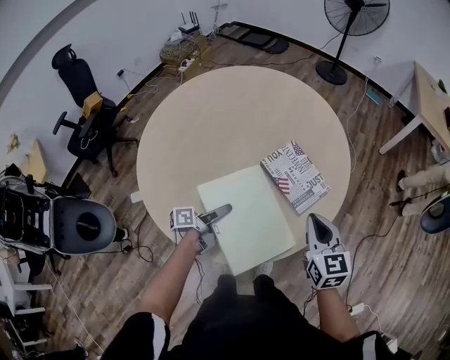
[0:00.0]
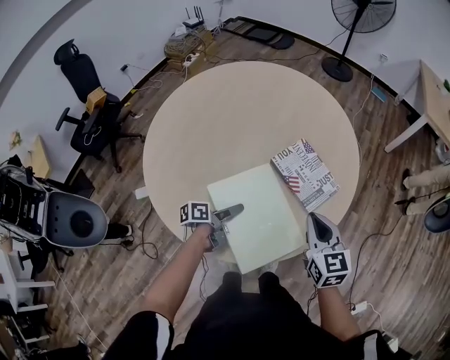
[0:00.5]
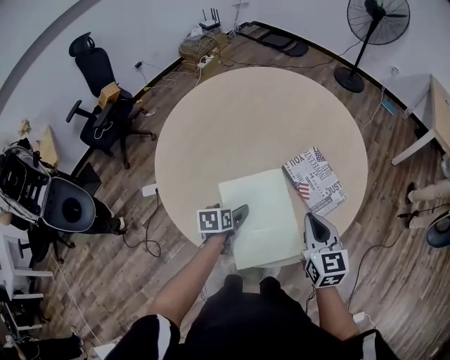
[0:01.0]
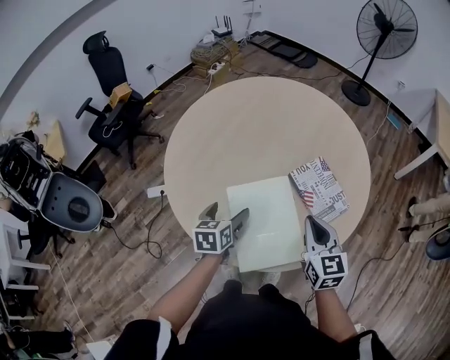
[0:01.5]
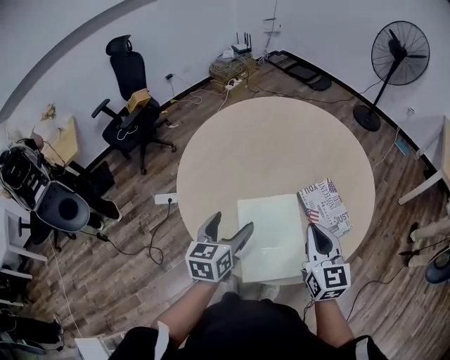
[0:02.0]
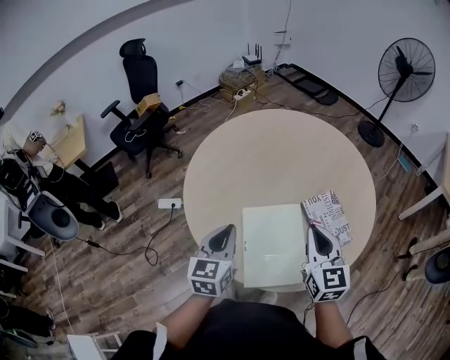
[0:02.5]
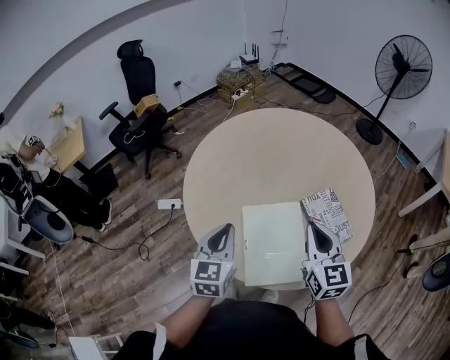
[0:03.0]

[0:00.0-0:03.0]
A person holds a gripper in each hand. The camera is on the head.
0:00.0 to 0:01.5: The left gripper goes approximately 10 cm upward and to the left, changes its angle by about 60 degrees, and opens its fingers. The right gripper is displaced to the left by some 10 cm.
0:01.5 to 0:03.0: The left gripper heads upward, covering roughly 15 cm, swivels about 30 degrees, and closes. Meanwhile the right gripper travels upward by about 10 cm.

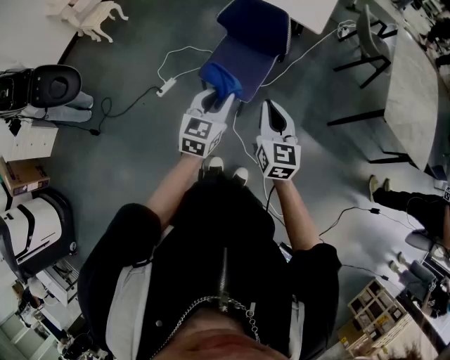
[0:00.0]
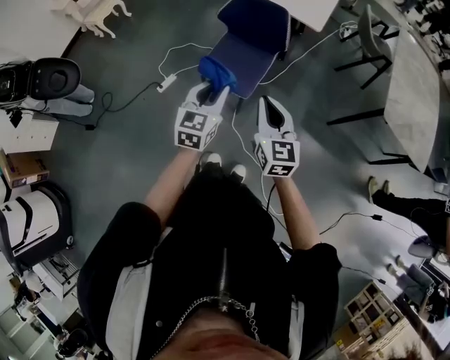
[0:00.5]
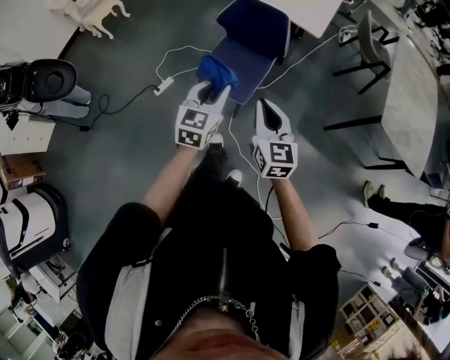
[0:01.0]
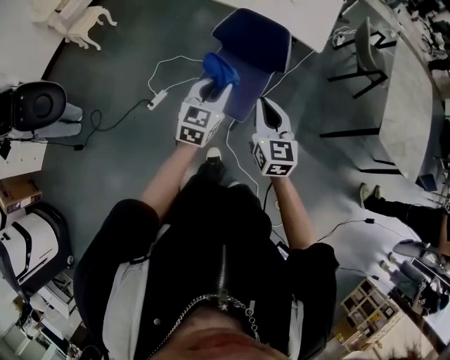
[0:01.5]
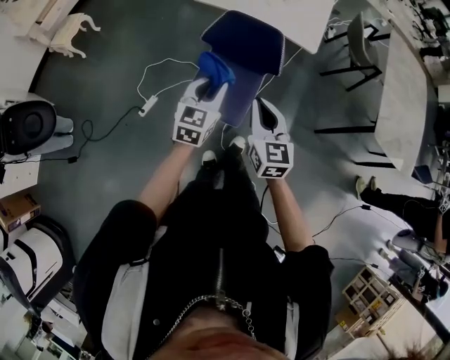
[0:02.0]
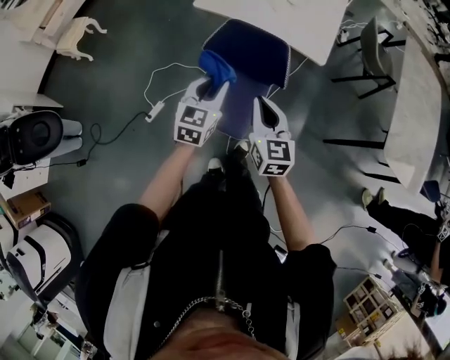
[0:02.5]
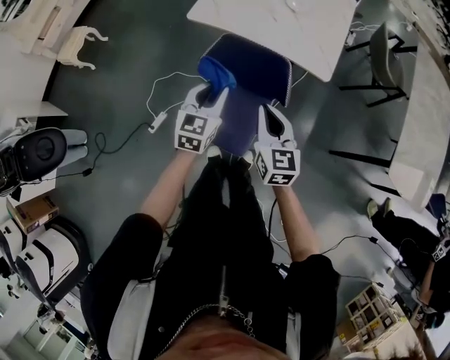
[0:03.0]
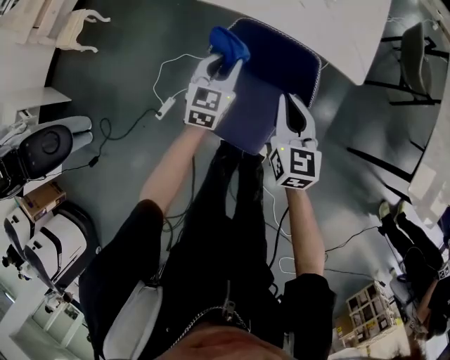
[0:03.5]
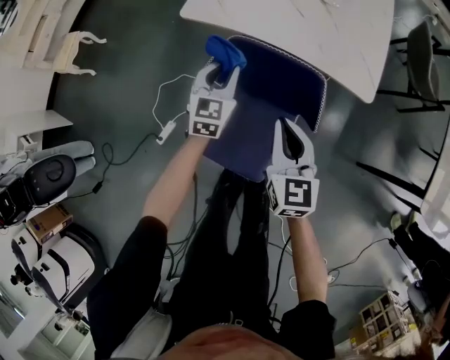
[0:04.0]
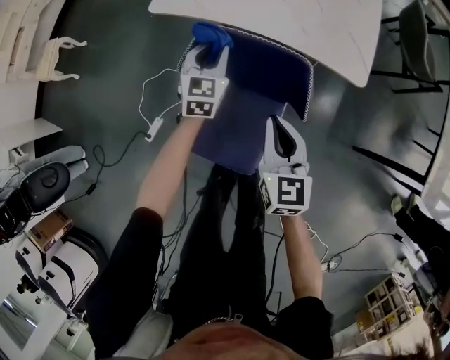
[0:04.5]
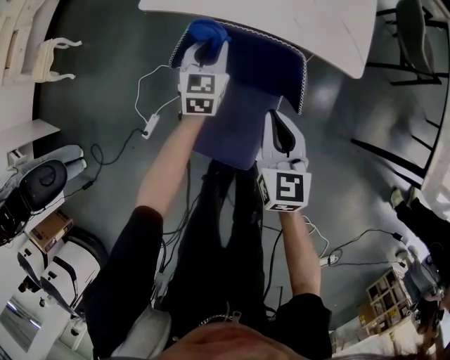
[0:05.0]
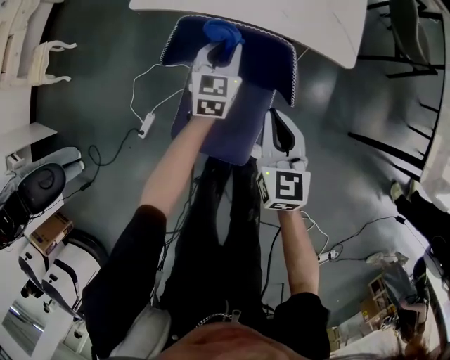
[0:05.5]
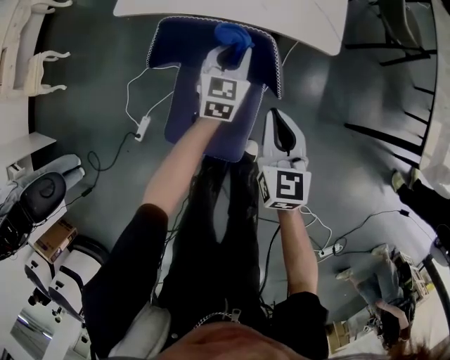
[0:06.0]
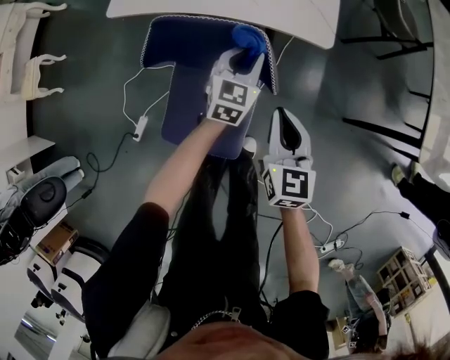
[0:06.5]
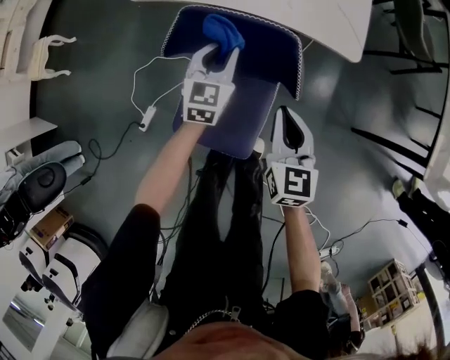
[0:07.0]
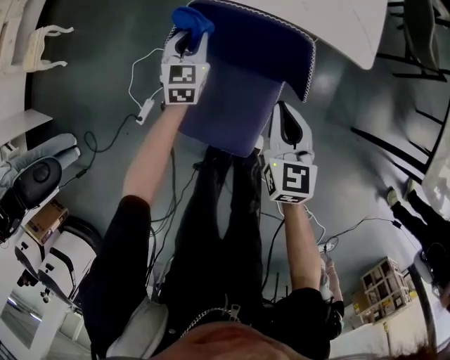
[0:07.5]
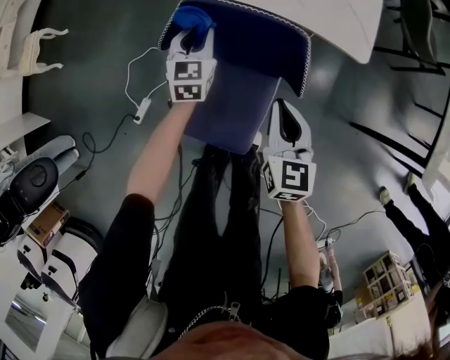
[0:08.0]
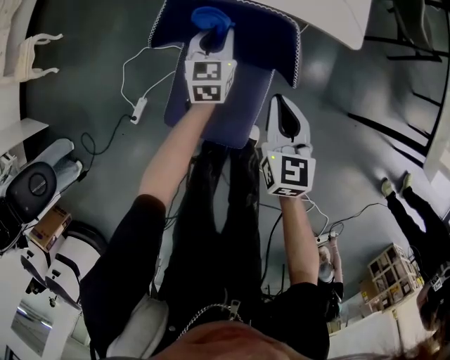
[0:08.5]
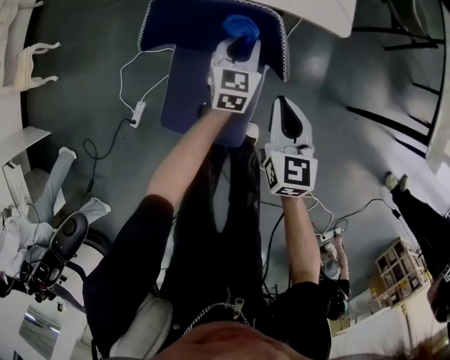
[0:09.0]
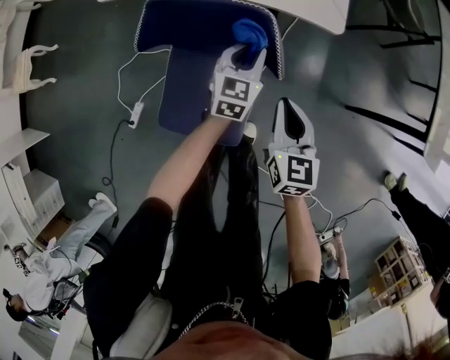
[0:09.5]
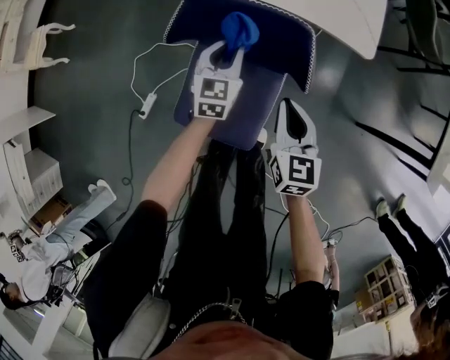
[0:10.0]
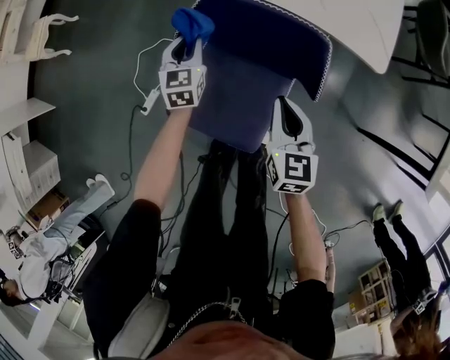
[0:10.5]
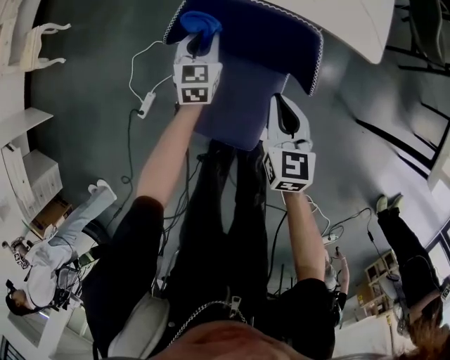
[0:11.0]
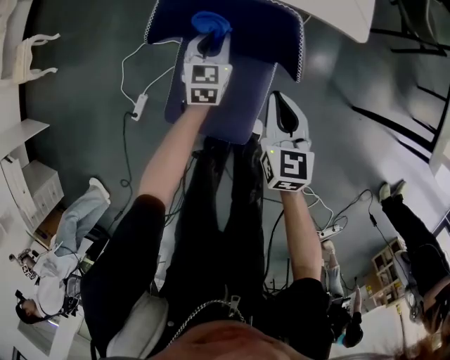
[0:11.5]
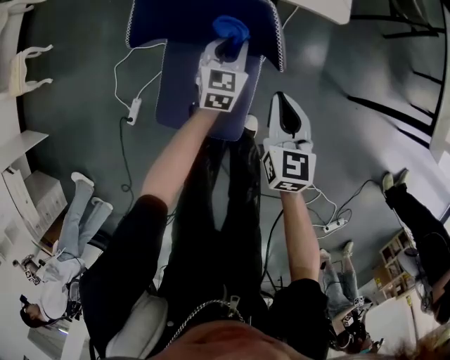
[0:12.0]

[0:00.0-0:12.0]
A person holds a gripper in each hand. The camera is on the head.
0:00.0 to 0:02.0: The two grippers go about 20 cm forward.
0:02.0 to 0:04.0: Both grippers move forward and downward, approximately 40 cm.
0:04.0 to 0:06.0: The left gripper shifts some 20 cm to the right, while the right gripper heads to the right, covering approximately 10 cm.
0:06.0 to 0:08.0: The left gripper moves to the left, some 15 cm. Meanwhile the right gripper shifts by about 5 cm.
0:08.0 to 0:10.0: The left gripper travels backward by about 5 cm, and moves approximately 20 cm to the right and comes back. Meanwhile the right gripper goes to the right and returns, approximately 10 cm each way.
0:10.0 to 0:12.0: The right gripper goes roughly 5 cm to the right. The left gripper moves to the right, some 10 cm.

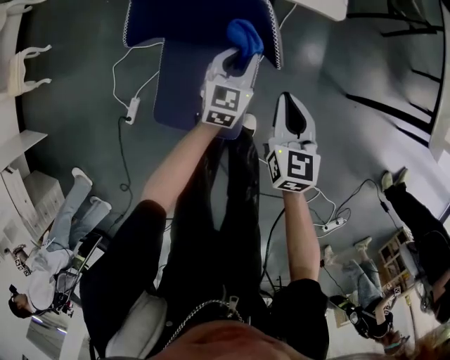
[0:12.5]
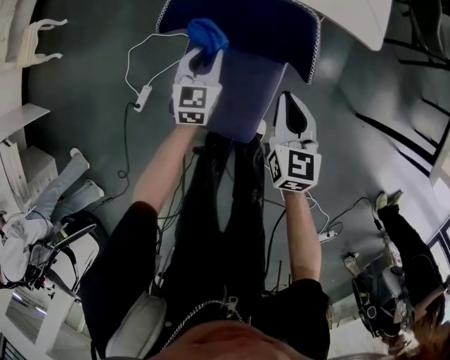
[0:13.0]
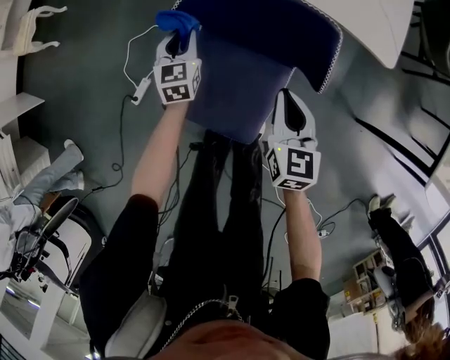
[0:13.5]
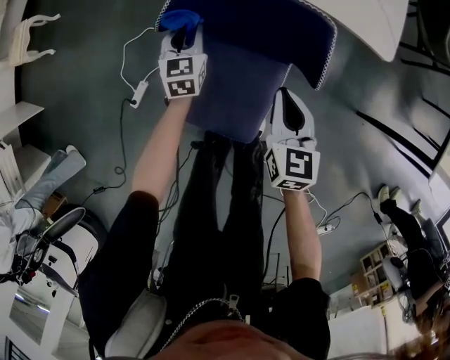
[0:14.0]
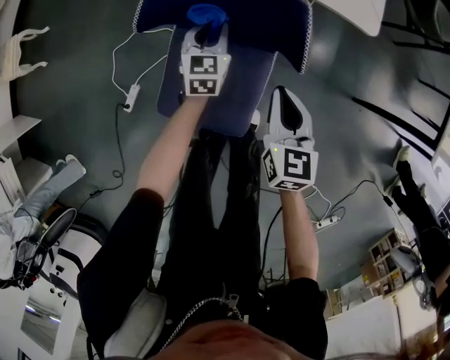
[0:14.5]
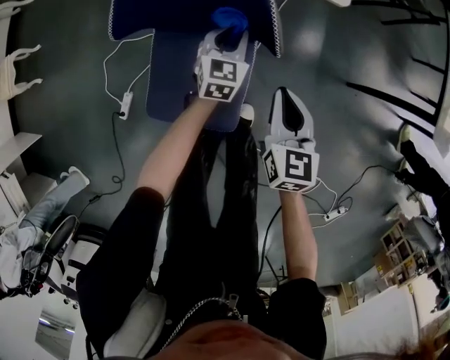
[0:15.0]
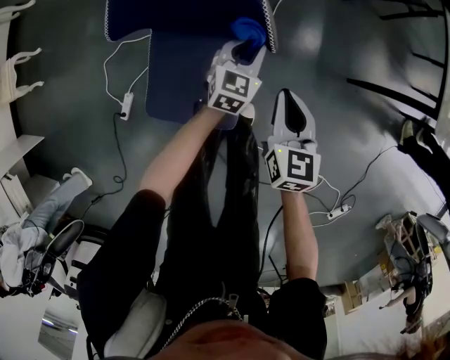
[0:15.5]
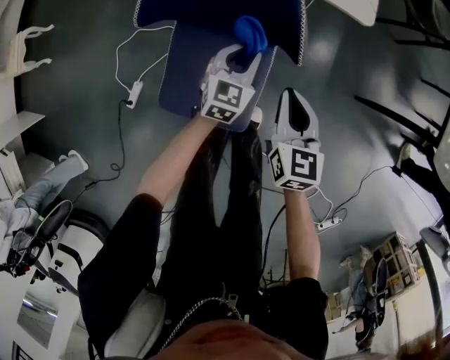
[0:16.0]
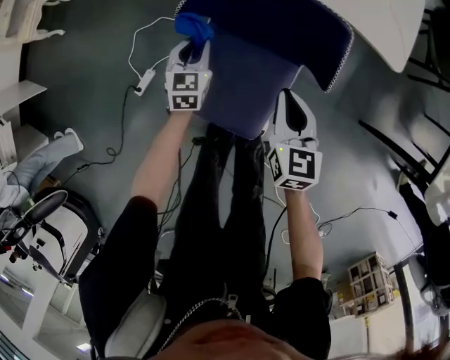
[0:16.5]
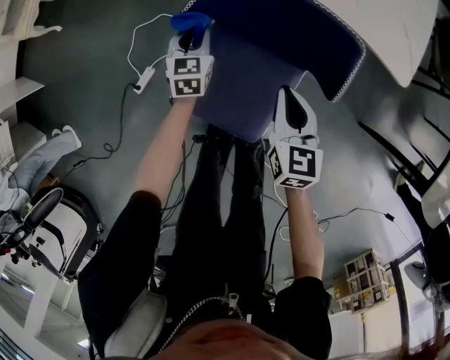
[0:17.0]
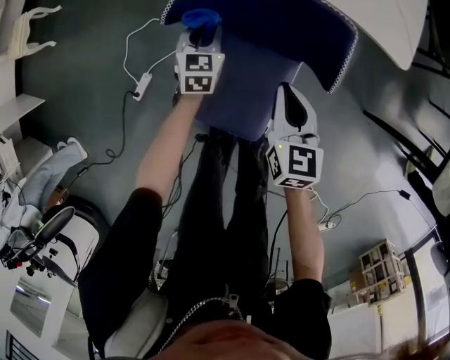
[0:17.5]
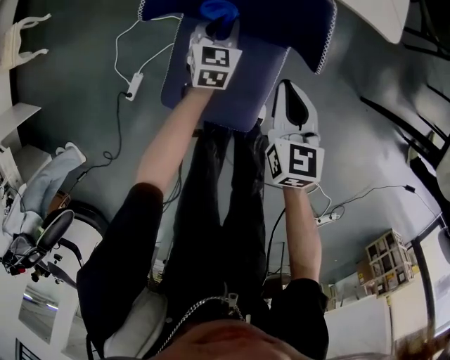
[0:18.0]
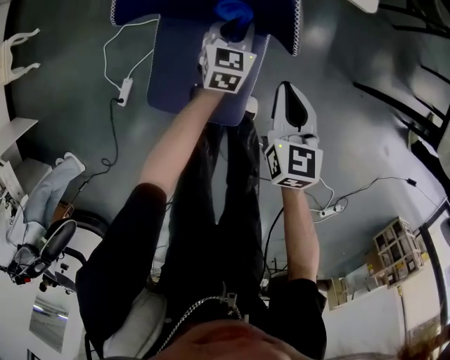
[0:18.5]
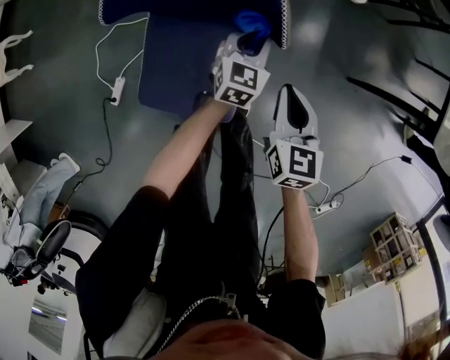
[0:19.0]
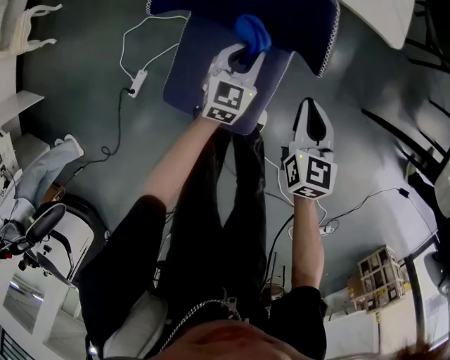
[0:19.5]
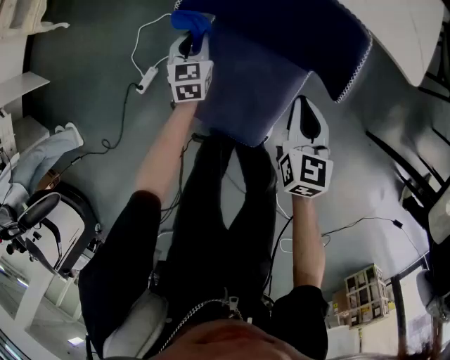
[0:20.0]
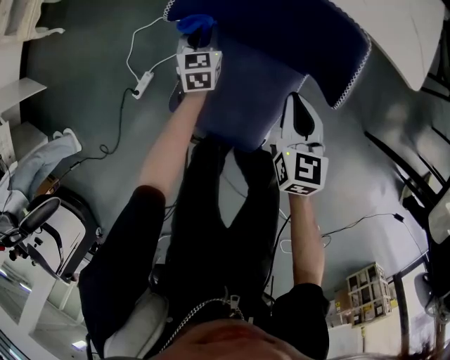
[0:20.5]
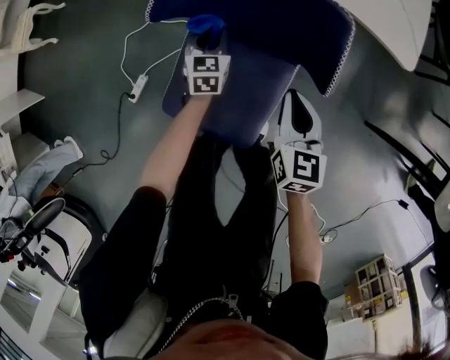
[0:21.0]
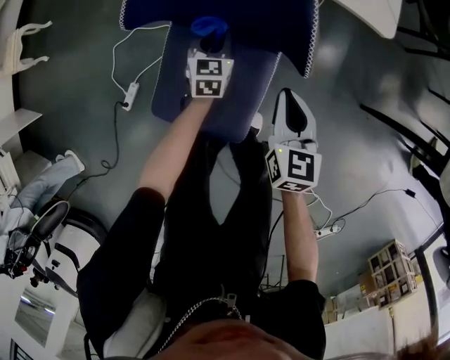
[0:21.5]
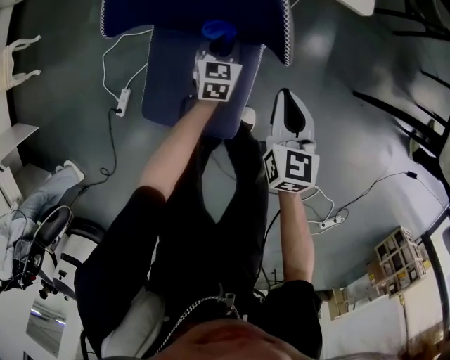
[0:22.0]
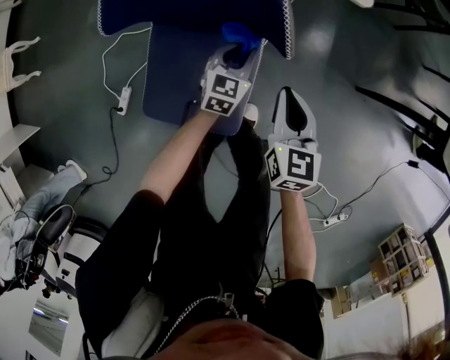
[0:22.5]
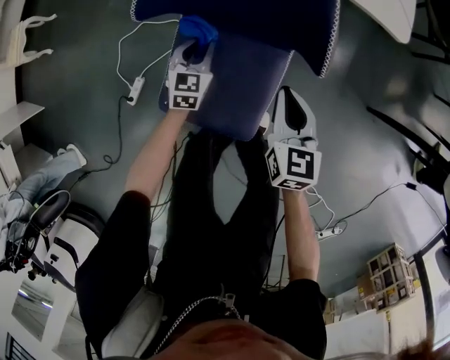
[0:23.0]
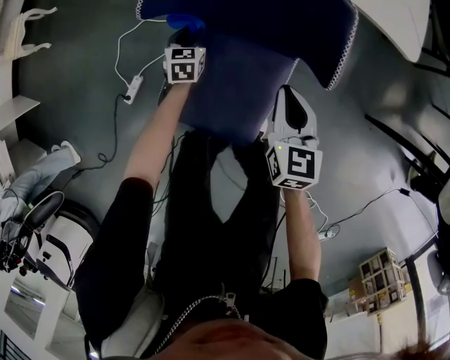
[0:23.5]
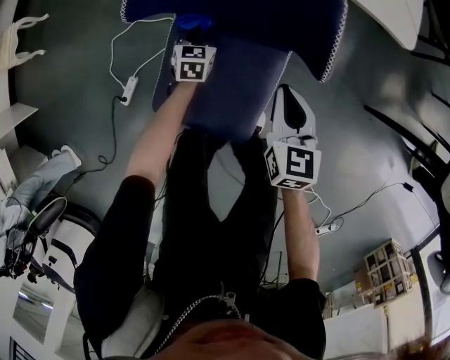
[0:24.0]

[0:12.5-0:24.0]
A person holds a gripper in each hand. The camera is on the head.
0:12.5 to 0:14.5: The right gripper is displaced to the left by approximately 5 cm; the left gripper shifts approximately 15 cm to the left and forward.
0:14.5 to 0:16.5: The left gripper moves roughly 15 cm.
0:16.5 to 0:18.5: The right gripper is displaced to the right by about 10 cm; the left gripper moves to the right, about 25 cm.
0:18.5 to 0:20.0: The left gripper shifts by about 25 cm, and rotates roughly 30 degrees; the right gripper ends up about 10 cm from where it was.
0:20.0 to 0:22.0: The right gripper travels to the right by some 10 cm; the left gripper is displaced to the right by roughly 25 cm, and turns by roughly 20 degrees.
0:22.0 to 0:24.0: The right gripper is displaced to the left by roughly 5 cm, while the left gripper goes left and right, about 25 cm each way, reversing 2 times.
